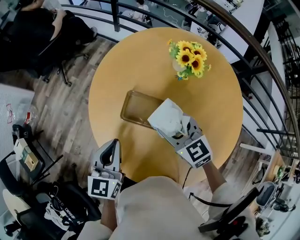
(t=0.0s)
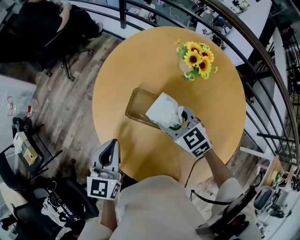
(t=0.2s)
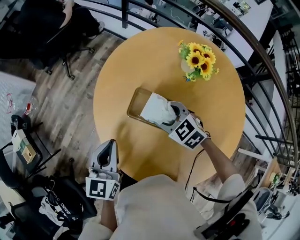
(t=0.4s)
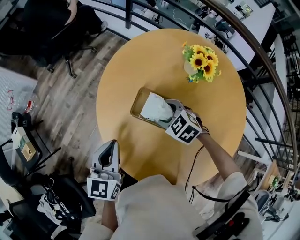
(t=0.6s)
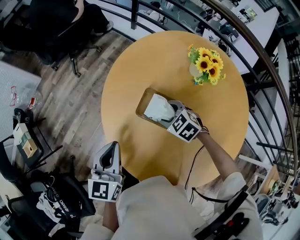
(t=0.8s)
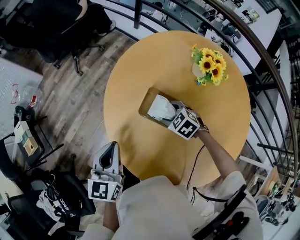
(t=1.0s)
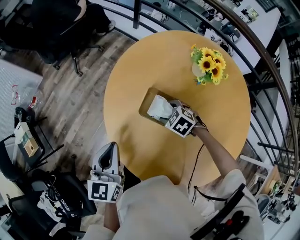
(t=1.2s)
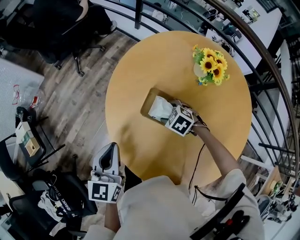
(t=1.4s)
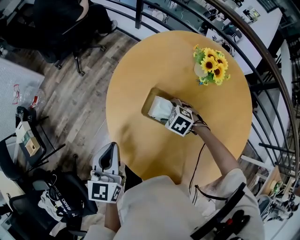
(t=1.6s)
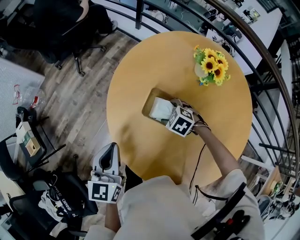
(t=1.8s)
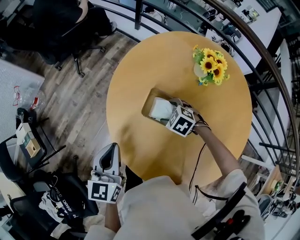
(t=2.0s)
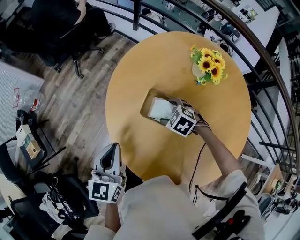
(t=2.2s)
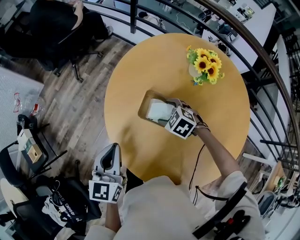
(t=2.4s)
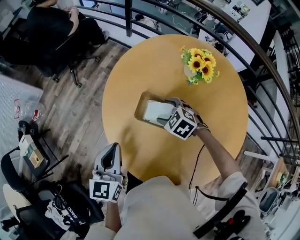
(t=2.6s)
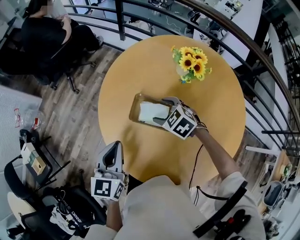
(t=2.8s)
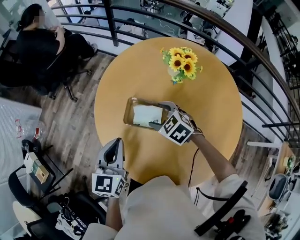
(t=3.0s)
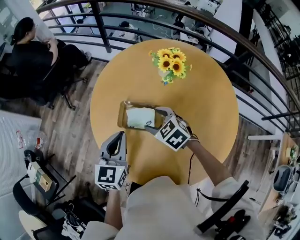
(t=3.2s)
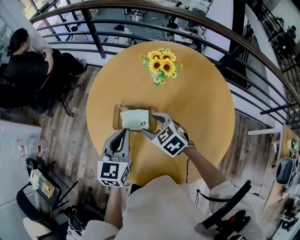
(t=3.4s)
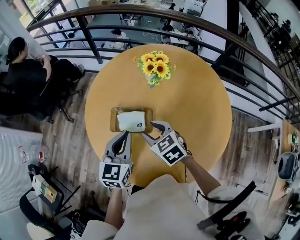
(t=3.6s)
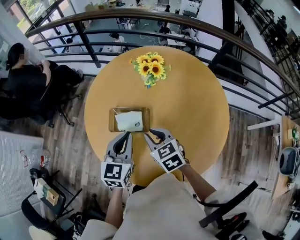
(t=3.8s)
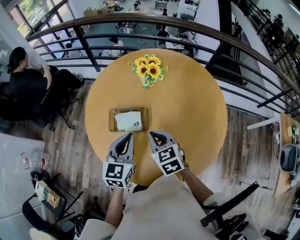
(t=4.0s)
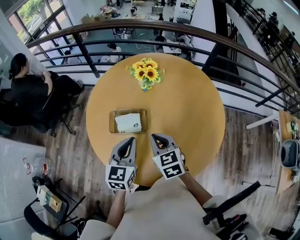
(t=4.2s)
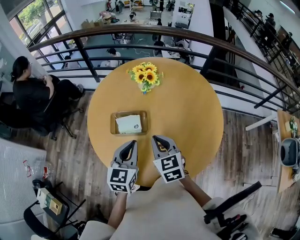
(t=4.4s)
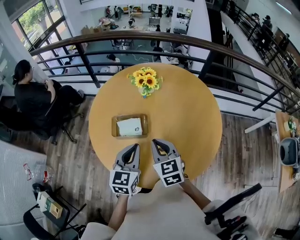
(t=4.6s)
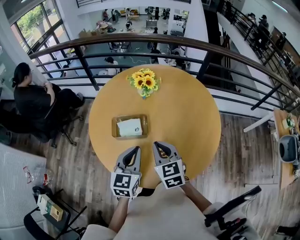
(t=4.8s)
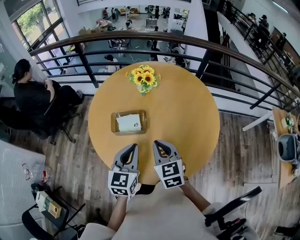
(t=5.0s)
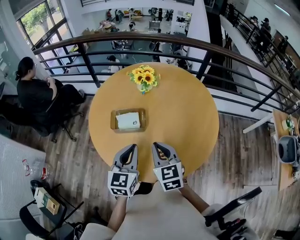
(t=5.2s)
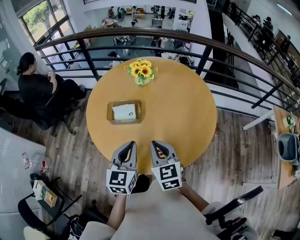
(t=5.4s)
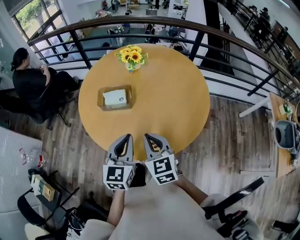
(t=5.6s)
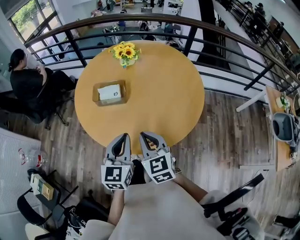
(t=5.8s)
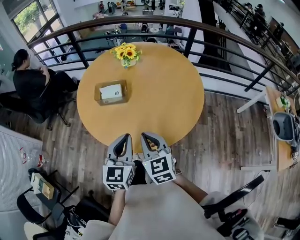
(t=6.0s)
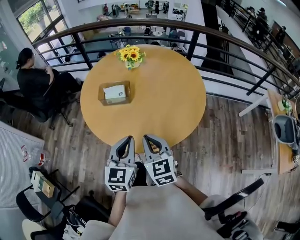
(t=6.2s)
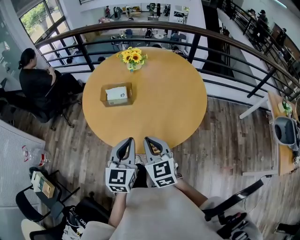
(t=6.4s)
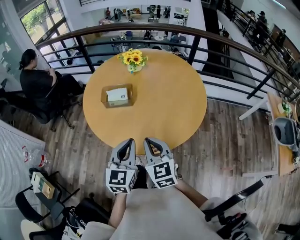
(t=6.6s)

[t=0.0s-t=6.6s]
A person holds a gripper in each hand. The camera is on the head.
t=0.0s to t=1.6s: The left gripper moves to the left, roughly 10 cm. The right gripper moves downward, approximately 15 cm, and tilts its fingers roughly 40 degrees downward.
t=1.6s to t=3.2s: The left gripper is displaced to the right by some 15 cm, and swivels approximately 20 degrees. Meanwhile the right gripper goes approximately 10 cm upward, and turns by approximately 30 degrees.
t=3.2s to t=5.0s: The left gripper shifts by some 10 cm. The right gripper shifts by some 20 cm, turns by some 50 degrees, and closes its fingers.
t=5.0s to t=6.6s: The grippers both shift backward by approximately 15 cm.

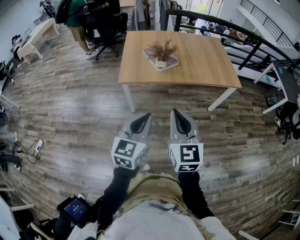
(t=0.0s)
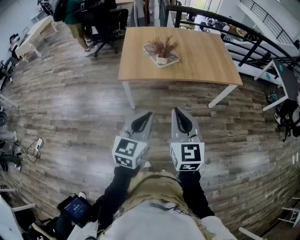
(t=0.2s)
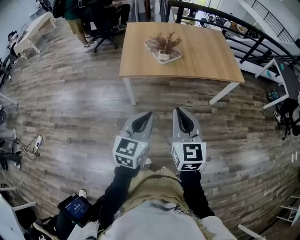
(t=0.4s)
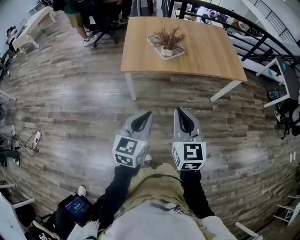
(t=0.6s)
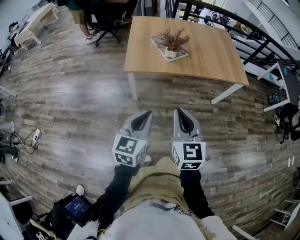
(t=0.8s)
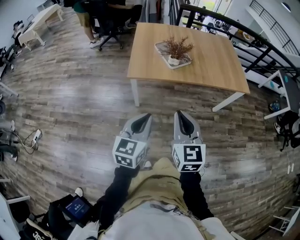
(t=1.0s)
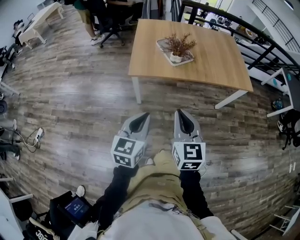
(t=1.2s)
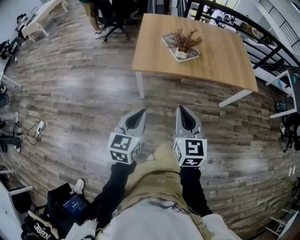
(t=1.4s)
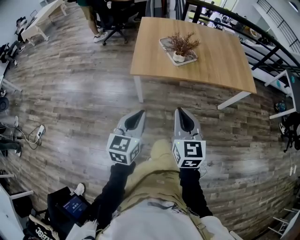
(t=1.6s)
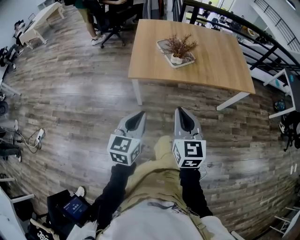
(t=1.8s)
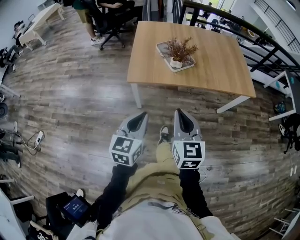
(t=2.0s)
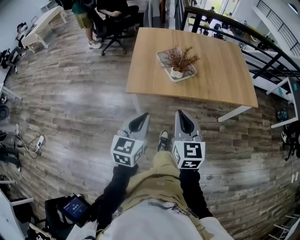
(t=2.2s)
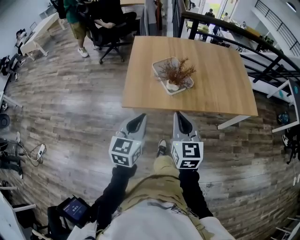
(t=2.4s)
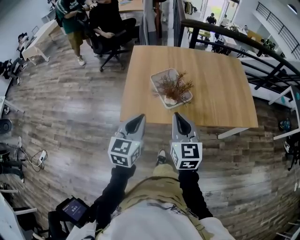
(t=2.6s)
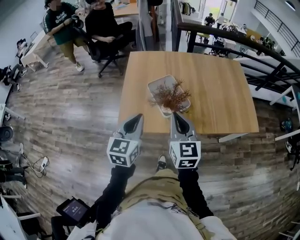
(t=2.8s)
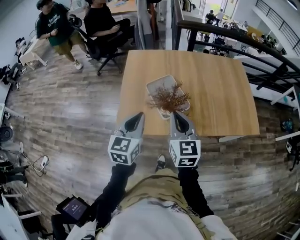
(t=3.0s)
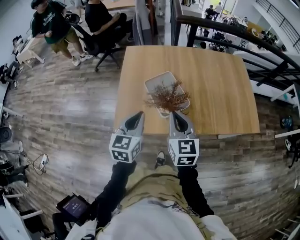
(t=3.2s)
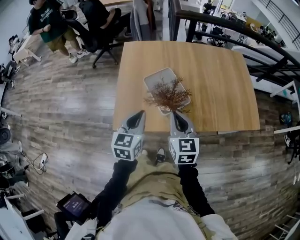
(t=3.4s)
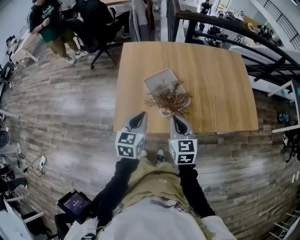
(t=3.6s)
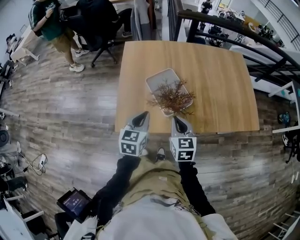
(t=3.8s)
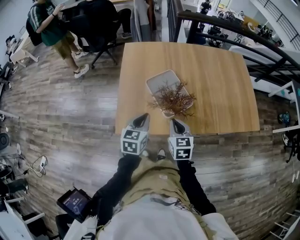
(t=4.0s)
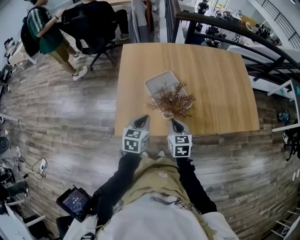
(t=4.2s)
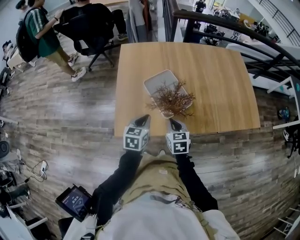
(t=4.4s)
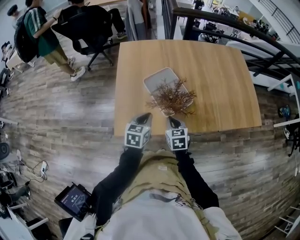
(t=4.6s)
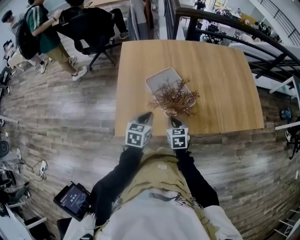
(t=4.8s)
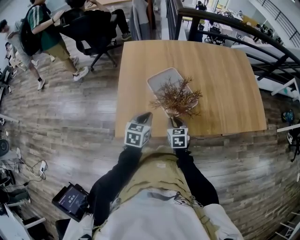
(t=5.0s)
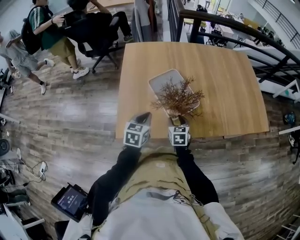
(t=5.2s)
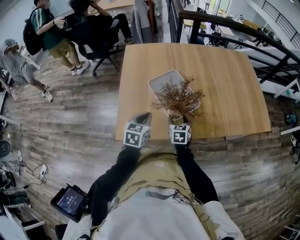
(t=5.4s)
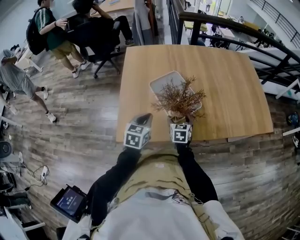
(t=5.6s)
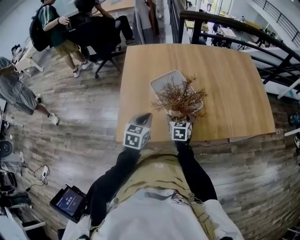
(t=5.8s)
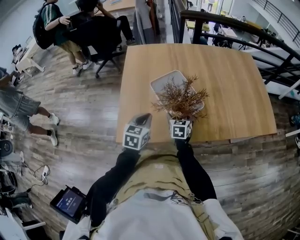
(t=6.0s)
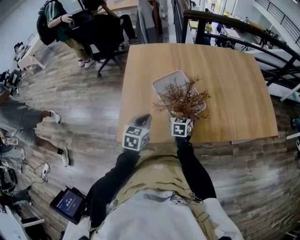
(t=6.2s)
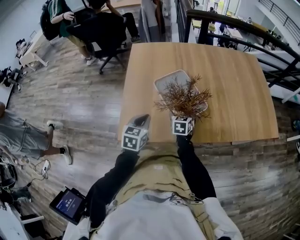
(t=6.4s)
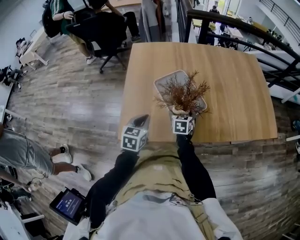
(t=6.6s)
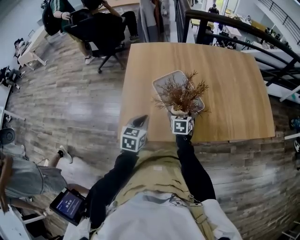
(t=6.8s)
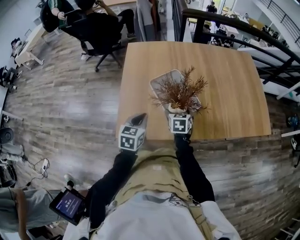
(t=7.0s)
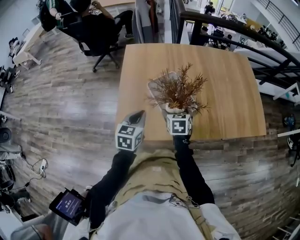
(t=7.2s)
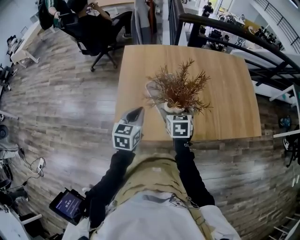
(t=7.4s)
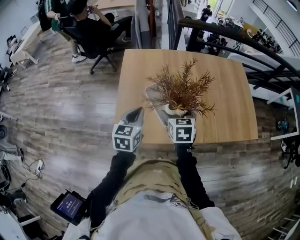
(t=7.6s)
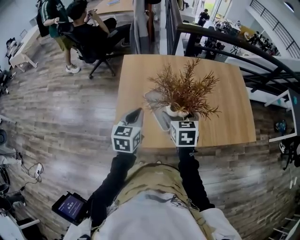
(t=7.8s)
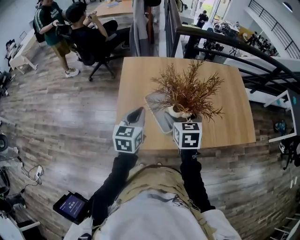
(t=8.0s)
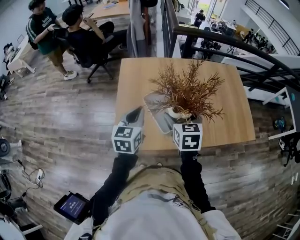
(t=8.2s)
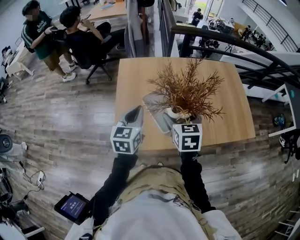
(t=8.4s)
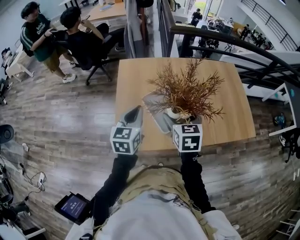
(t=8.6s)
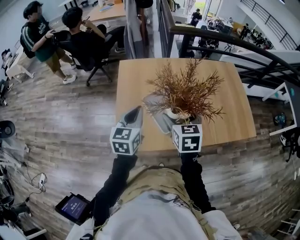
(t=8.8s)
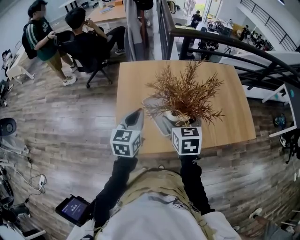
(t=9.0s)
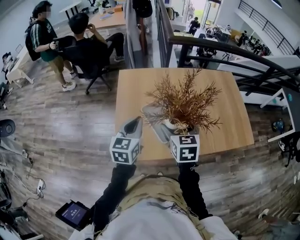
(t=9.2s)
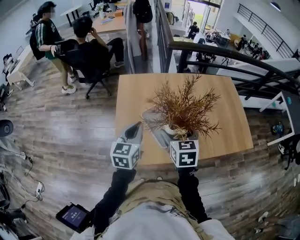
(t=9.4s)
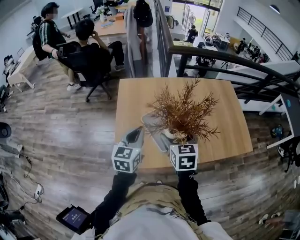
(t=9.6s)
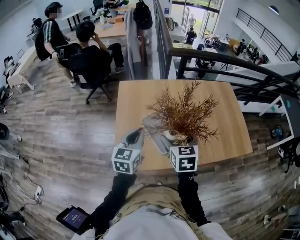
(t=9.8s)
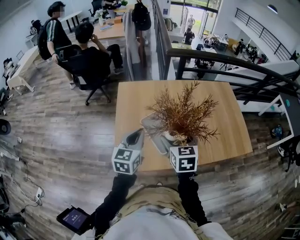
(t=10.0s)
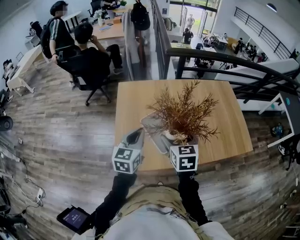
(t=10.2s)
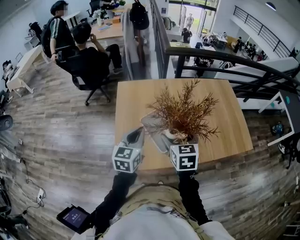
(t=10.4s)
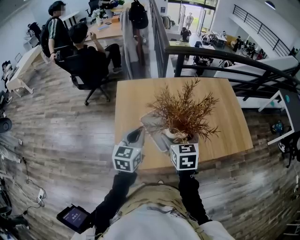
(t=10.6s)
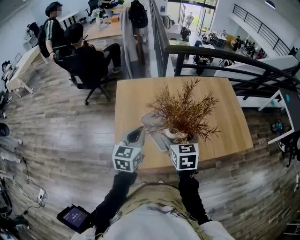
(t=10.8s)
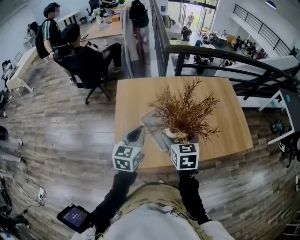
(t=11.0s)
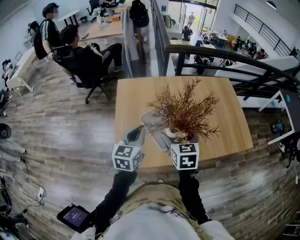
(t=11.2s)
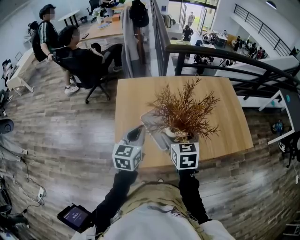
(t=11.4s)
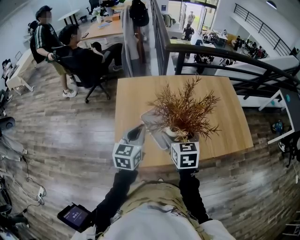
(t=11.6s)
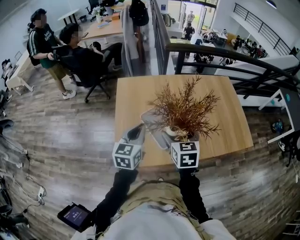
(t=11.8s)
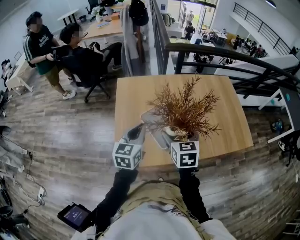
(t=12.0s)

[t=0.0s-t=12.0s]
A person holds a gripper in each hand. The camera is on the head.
t=0.0s to t=1.6s: The left gripper moves to the left, downward and forward, approximately 15 cm. Meanwhile the right gripper shifts approximately 15 cm forward, to the left and downward.
t=1.6s to t=3.0s: Both grippers are carried forward, approximately 40 cm.
t=3.0s to t=4.4s: The two grippers go approximately 20 cm downward. The right gripper swivels roughly 20 degrees.
t=4.4s to t=6.0s: The left gripper is displaced downward by some 10 cm. The right gripper is displaced downward and forward by roughly 20 cm, and opens.
t=6.0s to t=7.6s: Both grippers move upward, some 25 cm.
t=7.6s to t=9.0s: Both grippers move upward, approximately 10 cm.
t=9.0s to t=10.4s: Both grippers stay about where they are.
t=10.4s to t=12.0s: Neither gripper changes place.

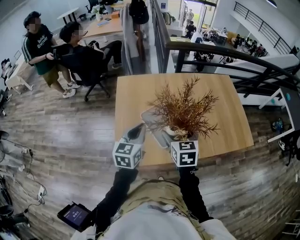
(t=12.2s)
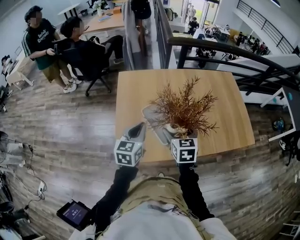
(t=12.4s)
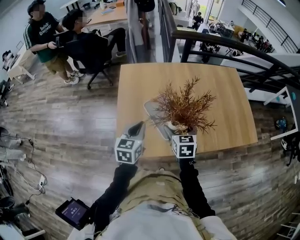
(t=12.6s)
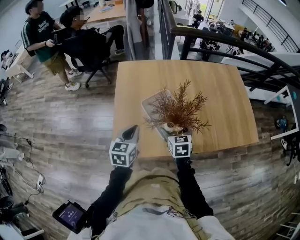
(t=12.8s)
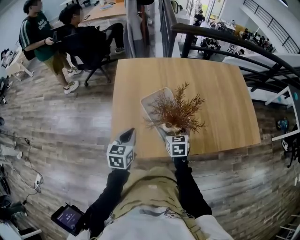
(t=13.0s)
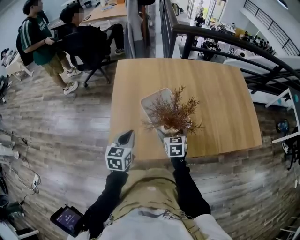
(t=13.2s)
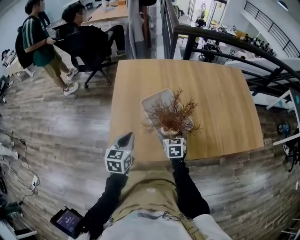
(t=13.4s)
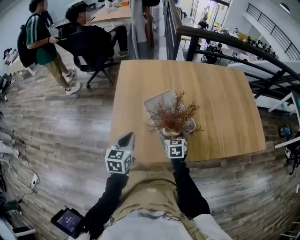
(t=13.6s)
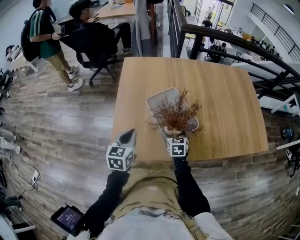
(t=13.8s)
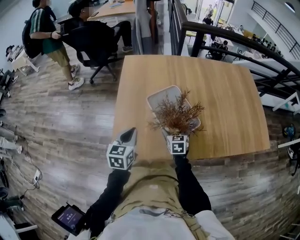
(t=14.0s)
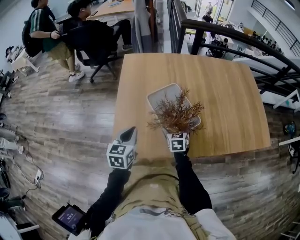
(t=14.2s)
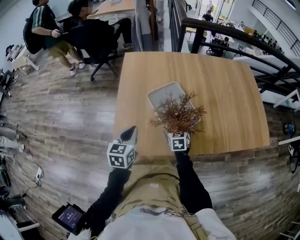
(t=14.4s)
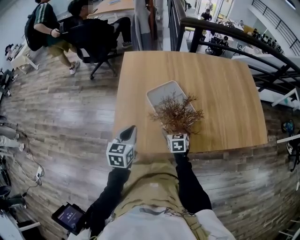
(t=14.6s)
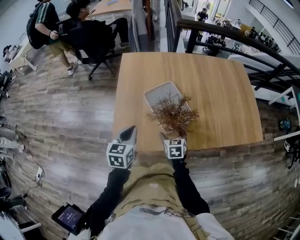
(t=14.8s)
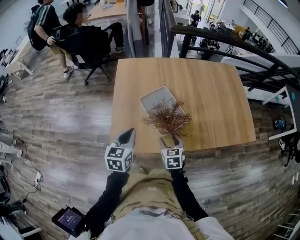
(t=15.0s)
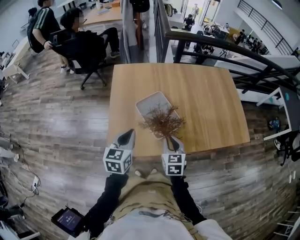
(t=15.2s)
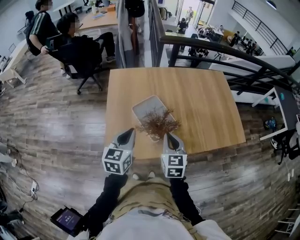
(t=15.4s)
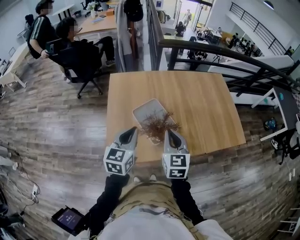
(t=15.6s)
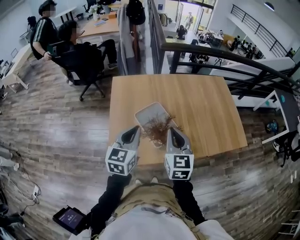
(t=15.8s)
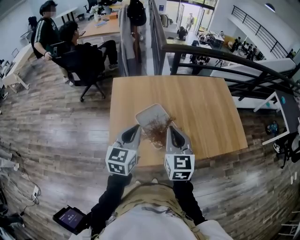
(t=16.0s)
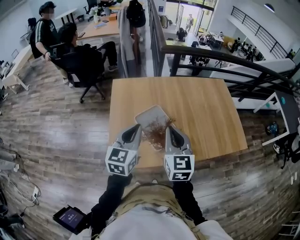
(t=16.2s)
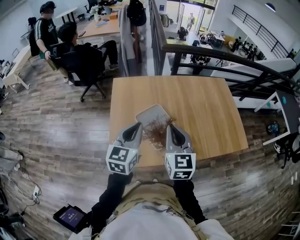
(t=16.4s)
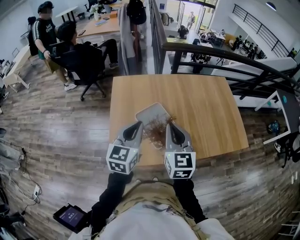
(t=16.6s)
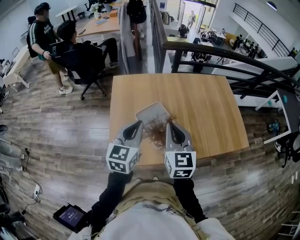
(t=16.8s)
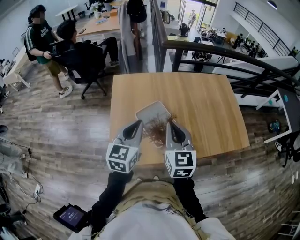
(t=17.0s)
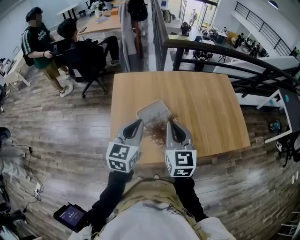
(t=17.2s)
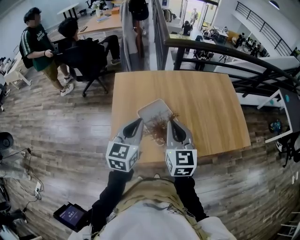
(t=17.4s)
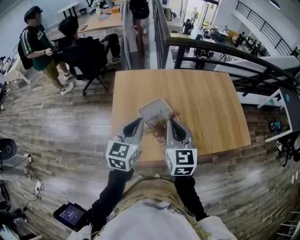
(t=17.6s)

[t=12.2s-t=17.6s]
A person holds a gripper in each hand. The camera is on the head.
t=12.2s to t=13.6s: The right gripper heads downward, covering roughly 35 cm. Meanwhile the left gripper heads downward, covering about 20 cm.
t=13.6s to t=15.0s: The right gripper goes roughly 15 cm upward and backward, and closes up. The left gripper shifts some 10 cm upward.
t=15.0s to t=16.2s: The right gripper heads upward, covering about 30 cm, rotates about 30 degrees, and closes its fingers. The left gripper heads upward, covering approximately 15 cm.
t=16.2s to t=17.6s: There are only small adjustments of the grippers.
